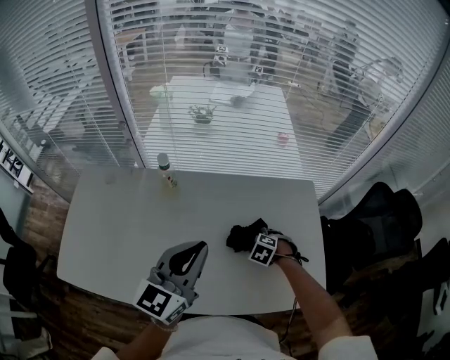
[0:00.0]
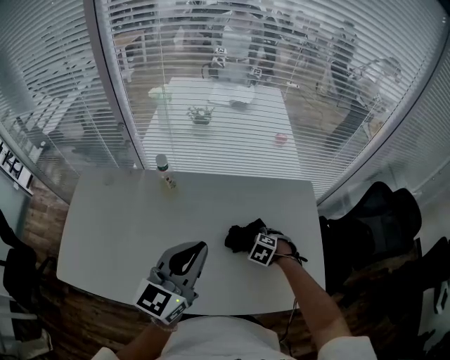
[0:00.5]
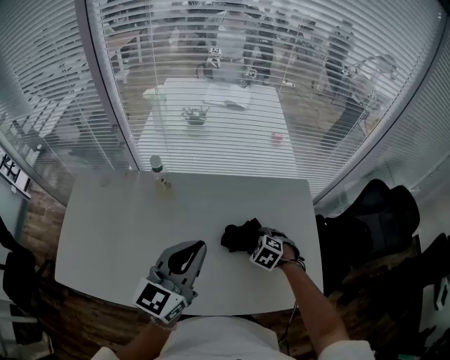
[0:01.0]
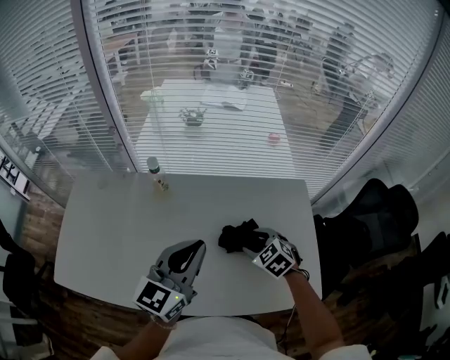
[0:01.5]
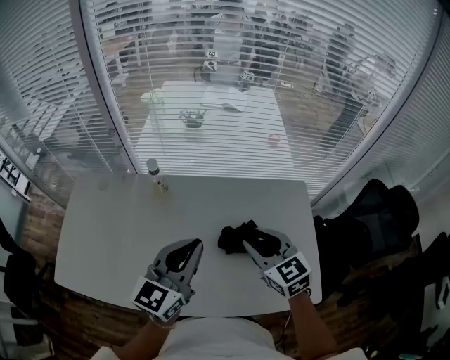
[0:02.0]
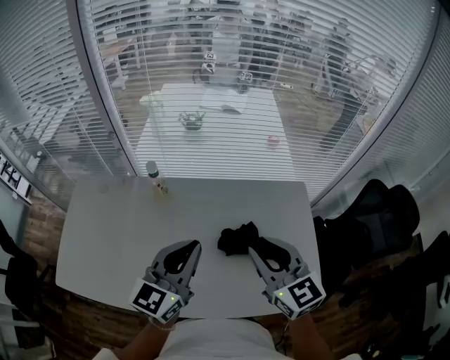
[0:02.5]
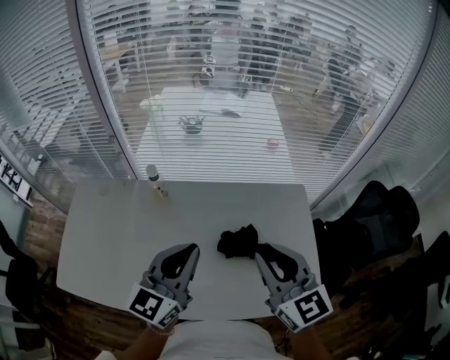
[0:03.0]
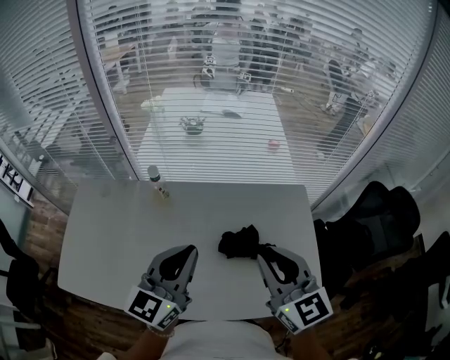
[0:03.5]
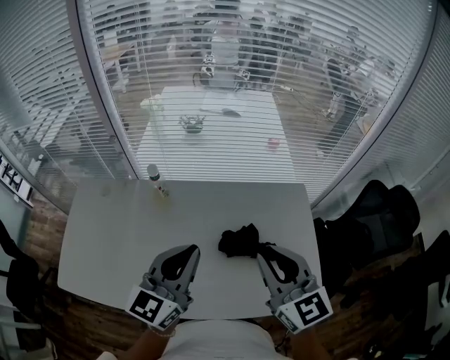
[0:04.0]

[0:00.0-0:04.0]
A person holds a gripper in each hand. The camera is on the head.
0.0 to 2.0 s: The right gripper shifts some 25 cm upward, angles its fingers upward, by approximately 50 degrees, and closes up.
2.0 to 4.0 s: The right gripper goes some 10 cm upward and backward.

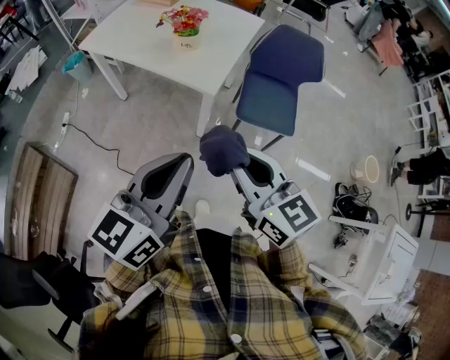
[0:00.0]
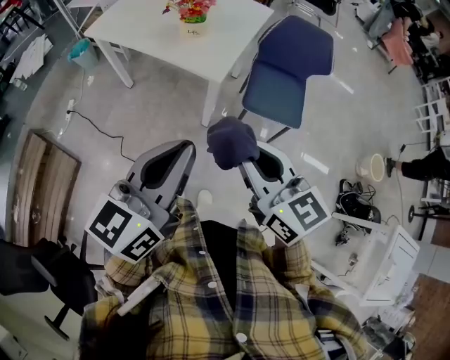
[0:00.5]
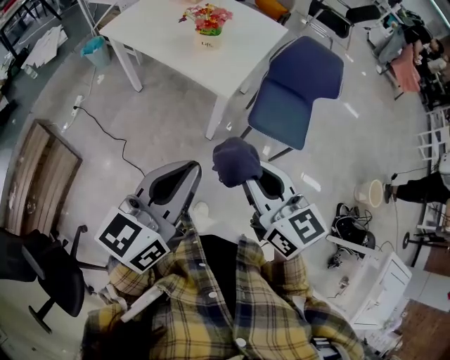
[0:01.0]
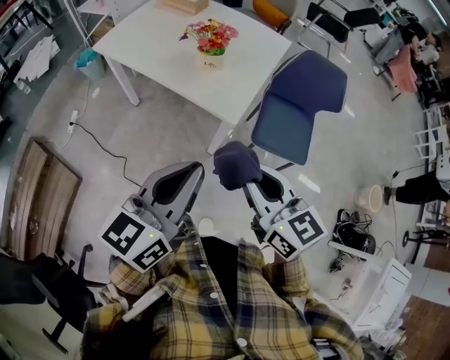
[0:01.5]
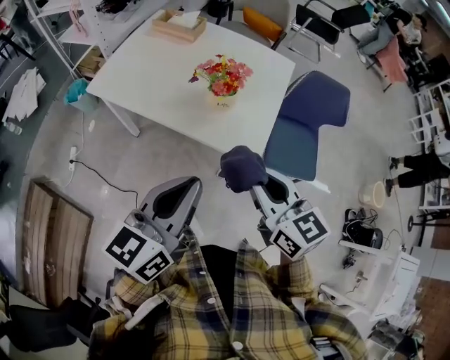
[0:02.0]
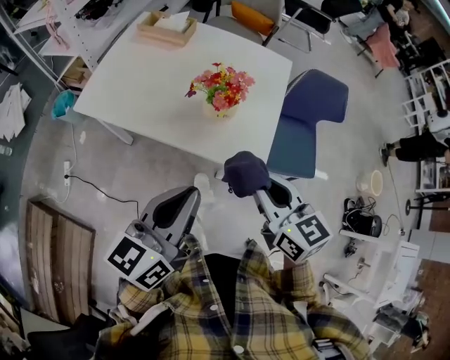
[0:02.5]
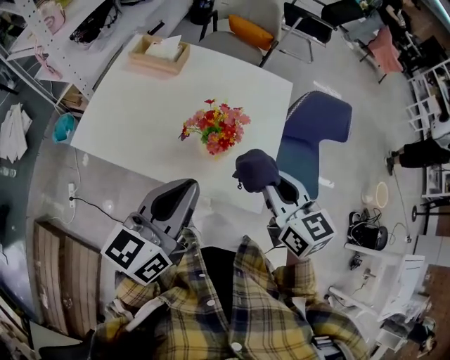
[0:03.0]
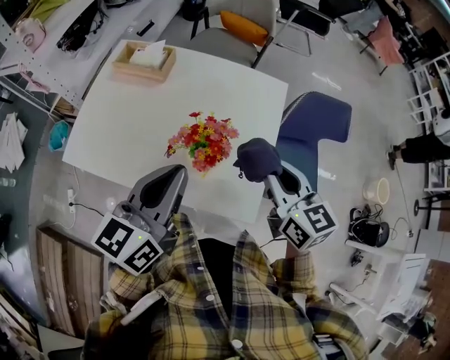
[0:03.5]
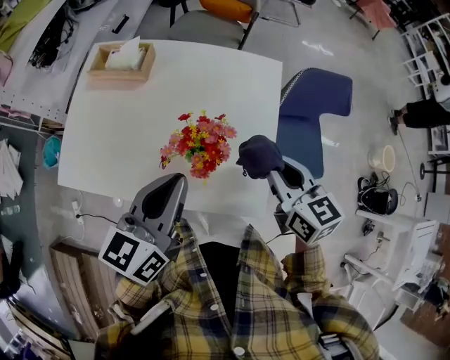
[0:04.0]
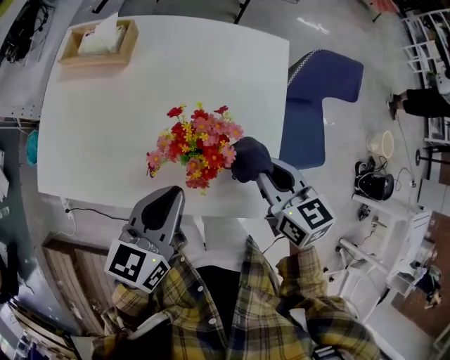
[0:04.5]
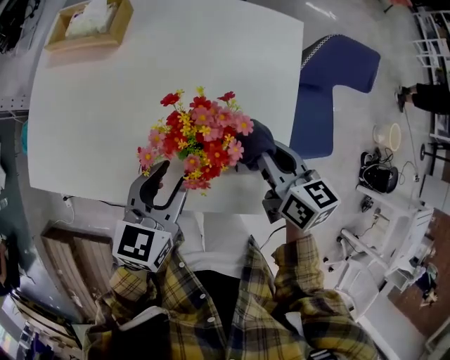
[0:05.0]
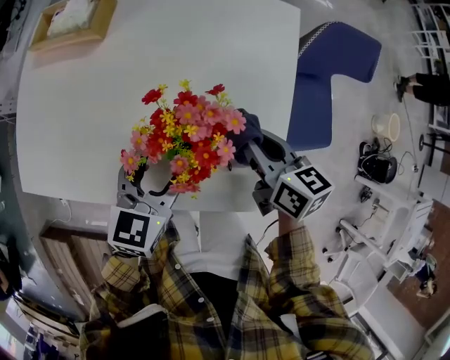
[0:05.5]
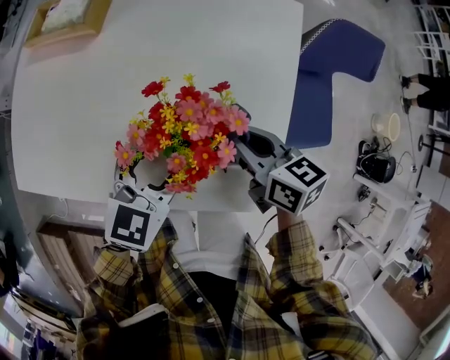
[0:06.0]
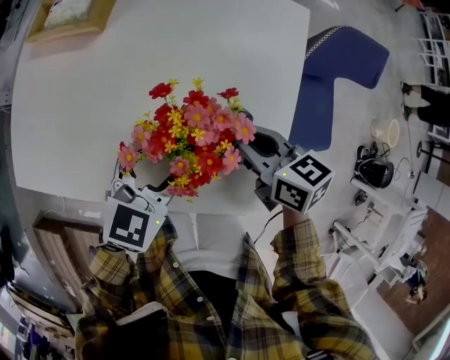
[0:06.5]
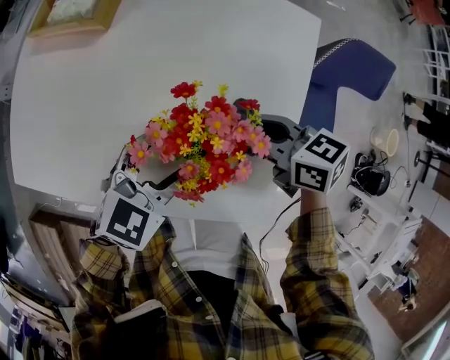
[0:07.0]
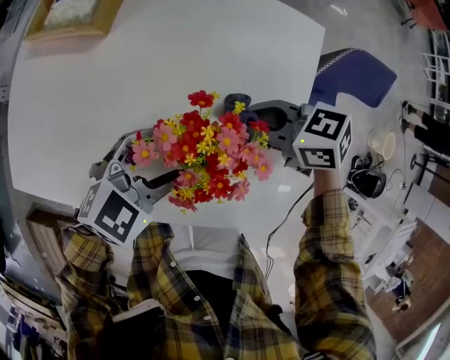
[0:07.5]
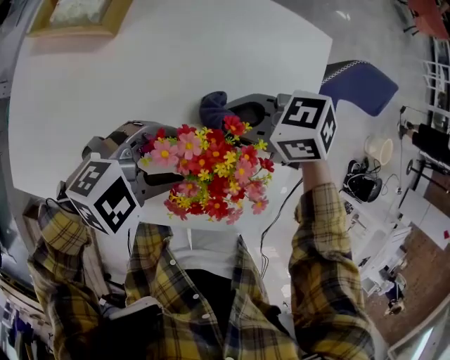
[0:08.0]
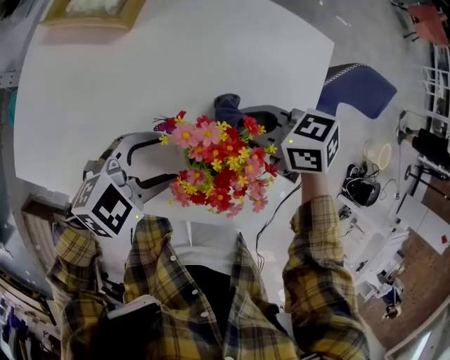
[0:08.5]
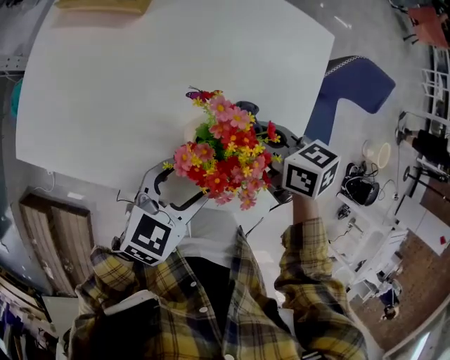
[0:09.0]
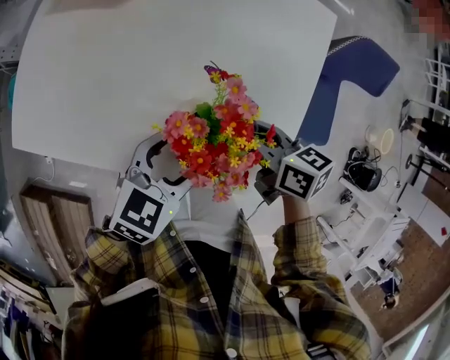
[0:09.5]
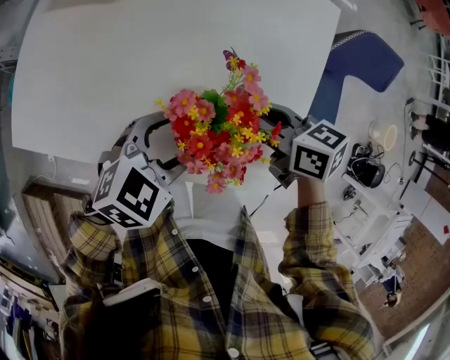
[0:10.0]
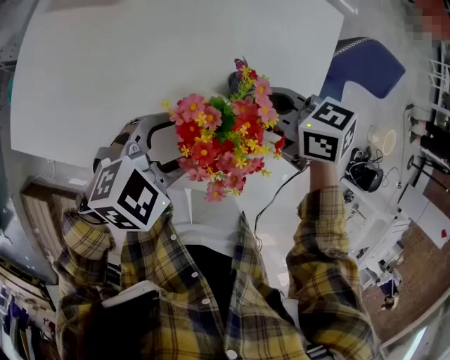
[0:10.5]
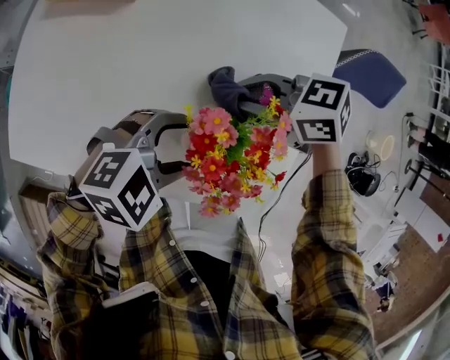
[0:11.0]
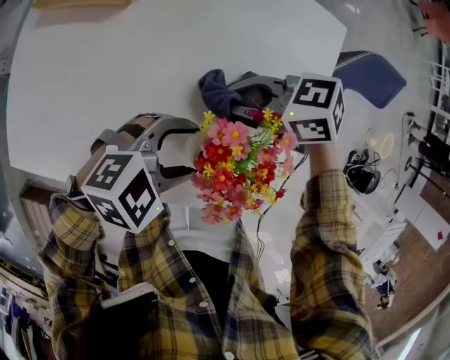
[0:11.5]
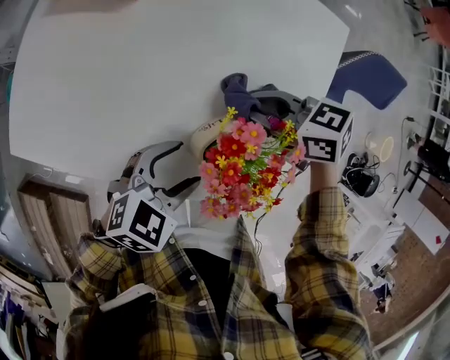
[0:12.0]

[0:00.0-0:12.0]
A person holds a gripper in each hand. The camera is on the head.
0.0 to 2.0 s: Both grippers move forward and to the left, approximately 25 cm.
2.0 to 4.0 s: The two grippers go some 30 cm forward. The right gripper rotates some 20 degrees.
4.0 to 6.0 s: Both grippers travel together downward, about 20 cm. The left gripper turns by approximately 30 degrees, and opens up, while the right gripper changes its angle by about 20 degrees.
6.0 to 8.0 s: The right gripper shifts by some 10 cm, and turns by about 50 degrees. Meanwhile the left gripper turns by about 50 degrees.
8.0 to 10.0 s: The right gripper moves some 10 cm, and rotates approximately 30 degrees. The left gripper changes place by approximately 5 cm, and swivels about 30 degrees.
10.0 to 12.0 s: The right gripper swivels some 20 degrees.

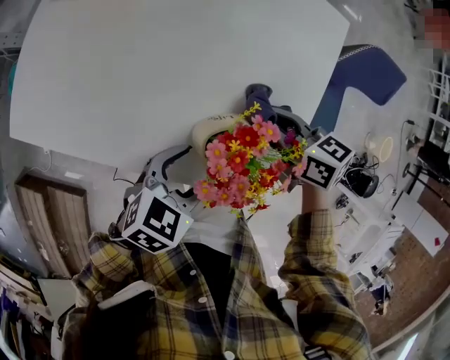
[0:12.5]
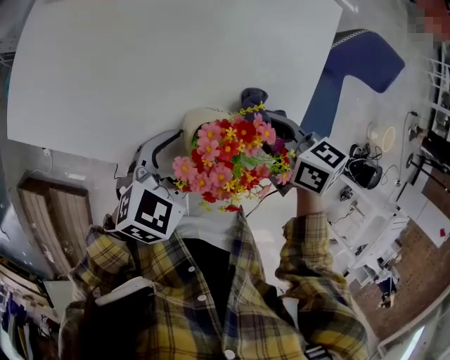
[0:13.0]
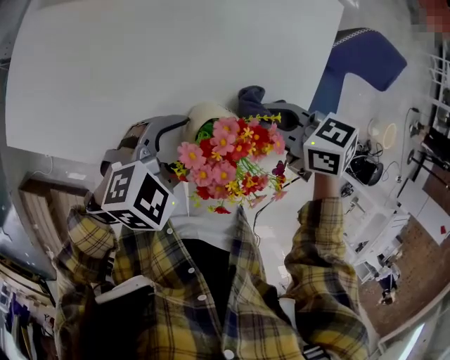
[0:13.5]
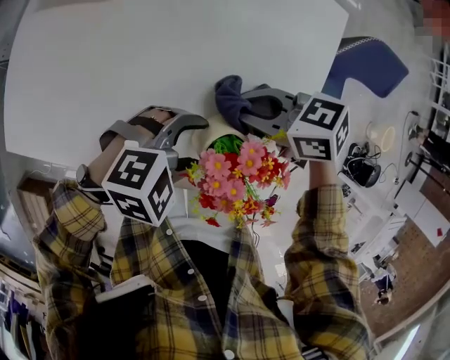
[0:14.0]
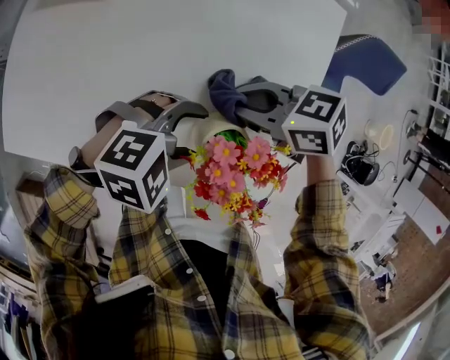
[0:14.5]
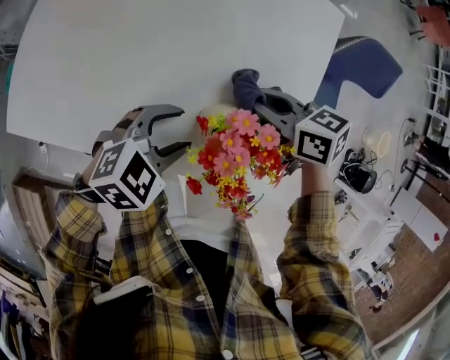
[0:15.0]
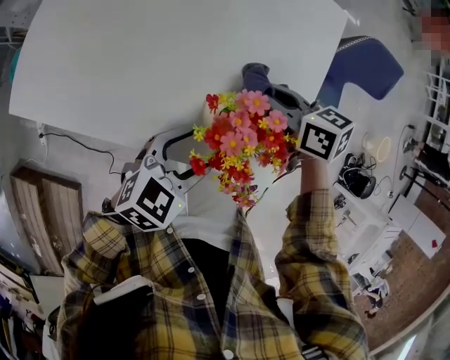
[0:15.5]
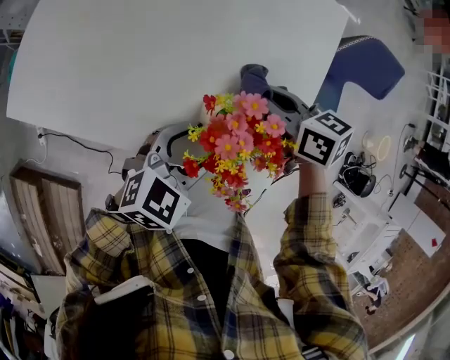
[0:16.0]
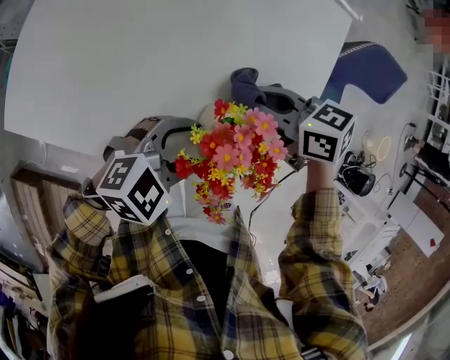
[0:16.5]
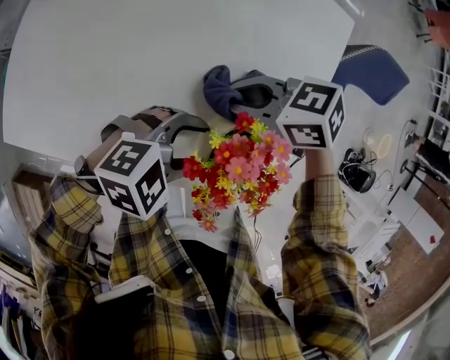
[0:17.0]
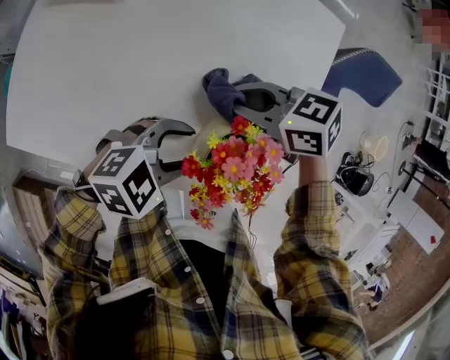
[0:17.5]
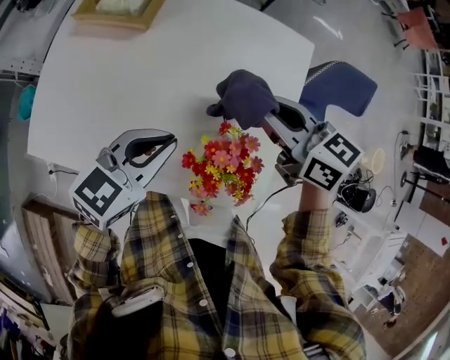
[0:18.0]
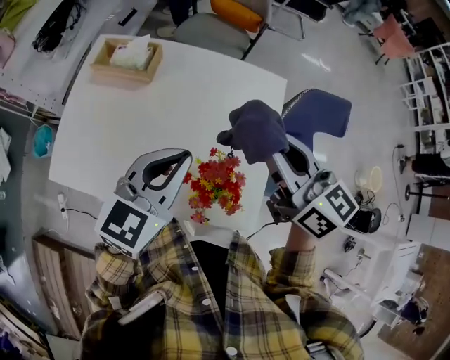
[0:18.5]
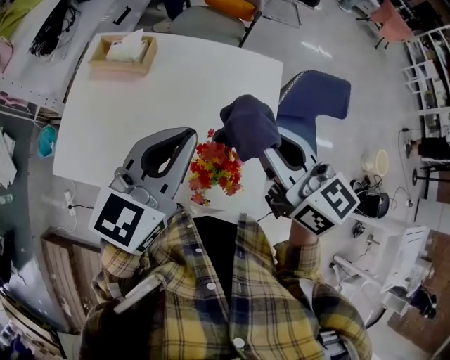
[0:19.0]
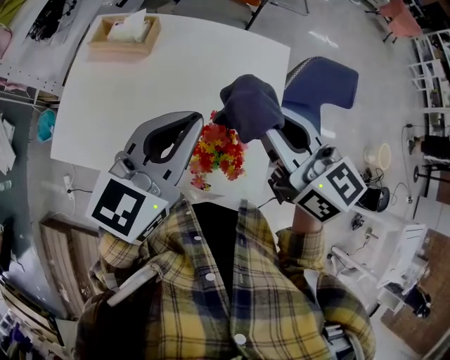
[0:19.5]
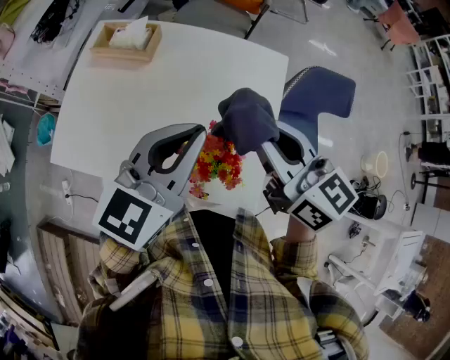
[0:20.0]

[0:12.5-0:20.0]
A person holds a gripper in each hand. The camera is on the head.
12.5 to 14.5 s: The right gripper changes place by some 5 cm, and changes its angle by about 30 degrees. The left gripper rotates around the line of its fingers by roughly 50 degrees, clockwise from behind.
14.5 to 16.5 s: The left gripper changes its angle by roughly 20 degrees.
16.5 to 18.0 s: The grippers both shift upward by some 15 cm. The right gripper changes its angle by about 20 degrees. Meanwhile the left gripper changes its angle by approximately 30 degrees, and closes up.
18.0 to 20.0 s: The right gripper heads upward and backward, covering about 15 cm, while the left gripper shifts approximately 15 cm upward, and swivels approximately 20 degrees.

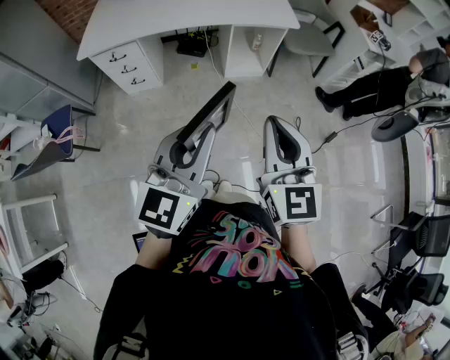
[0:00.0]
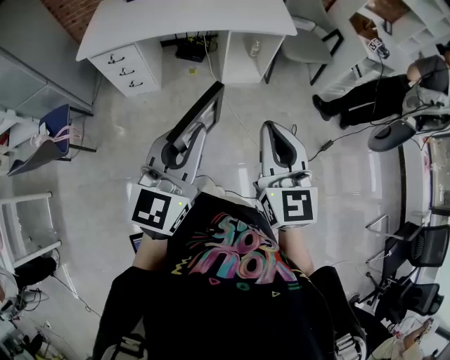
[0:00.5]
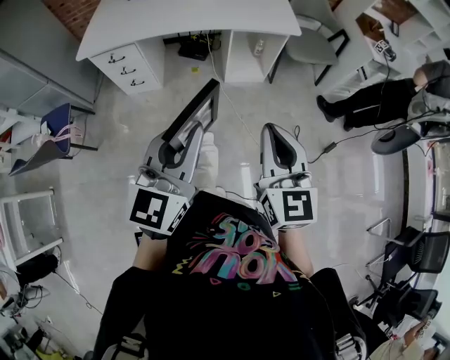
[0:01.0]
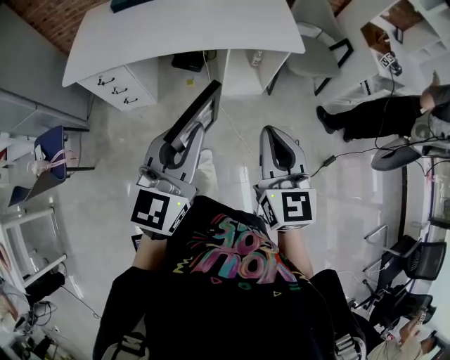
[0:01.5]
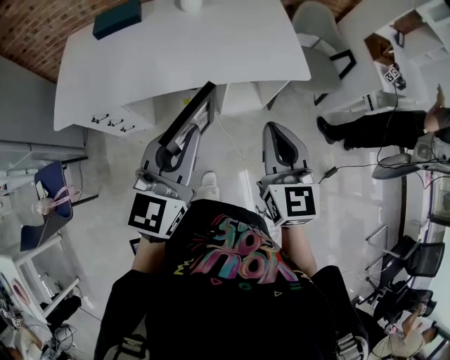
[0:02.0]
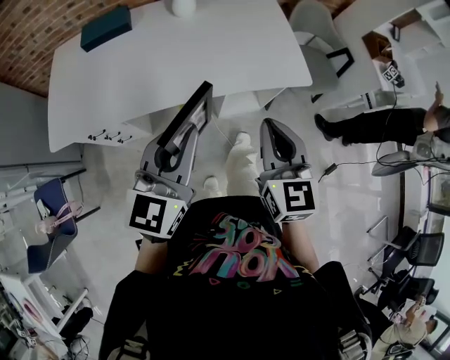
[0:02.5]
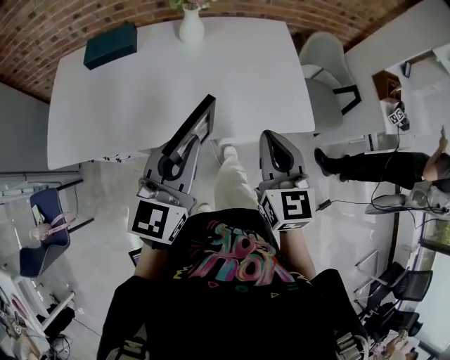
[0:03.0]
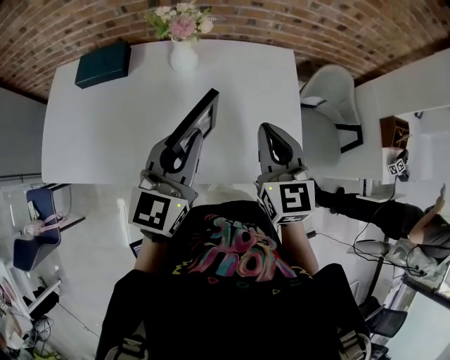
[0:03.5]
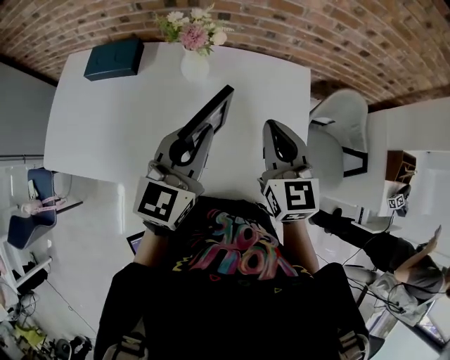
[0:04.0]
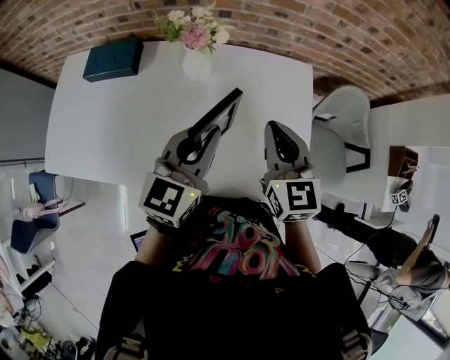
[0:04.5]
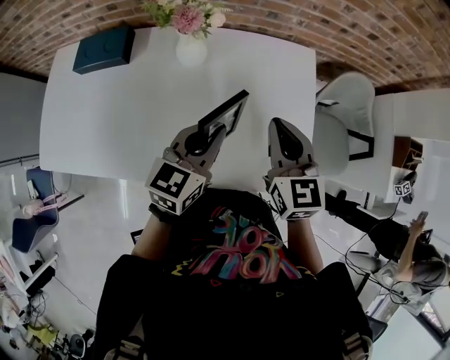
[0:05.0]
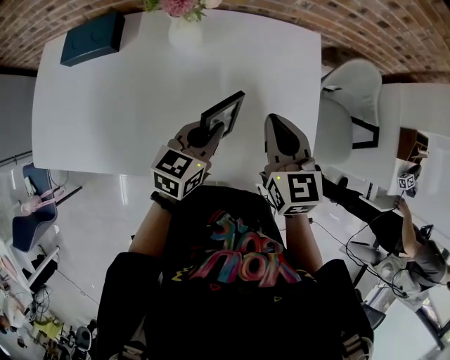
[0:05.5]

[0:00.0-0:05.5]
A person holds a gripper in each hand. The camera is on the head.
0.0 to 2.0 s: The pair of grippers is taken forward, about 40 cm.
2.0 to 3.5 s: The two grippers travel together, forward, some 50 cm.
3.5 to 5.5 s: The right gripper moves downward and forward, approximately 15 cm, while the left gripper shifts approximately 20 cm downward and forward, and rotates approximately 30 degrees.
